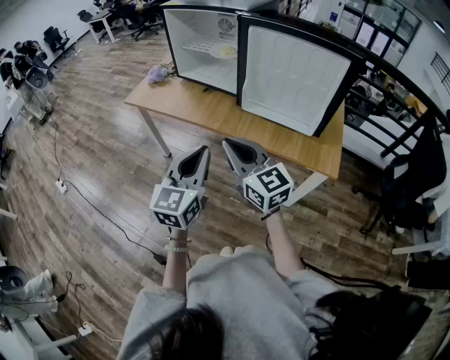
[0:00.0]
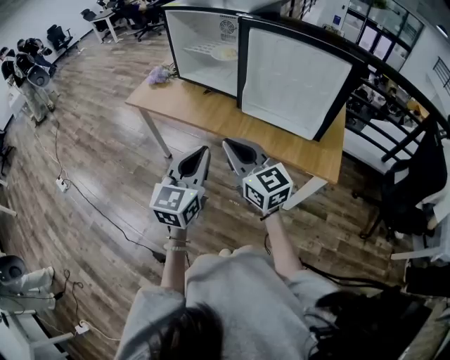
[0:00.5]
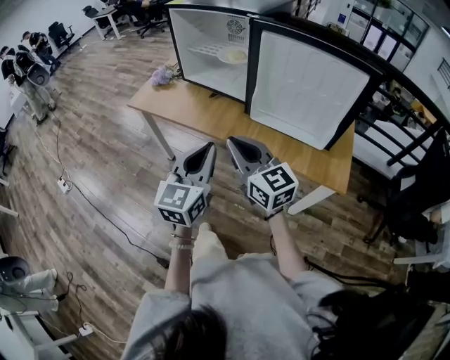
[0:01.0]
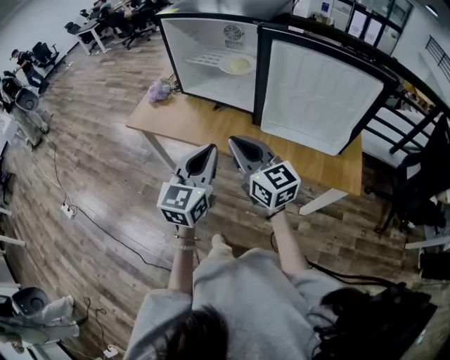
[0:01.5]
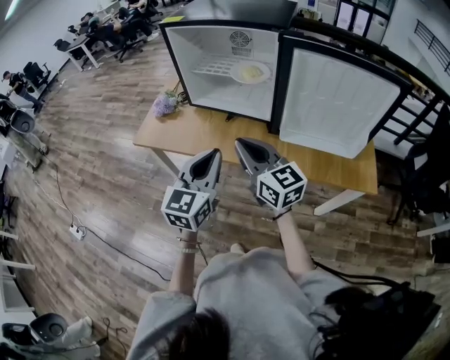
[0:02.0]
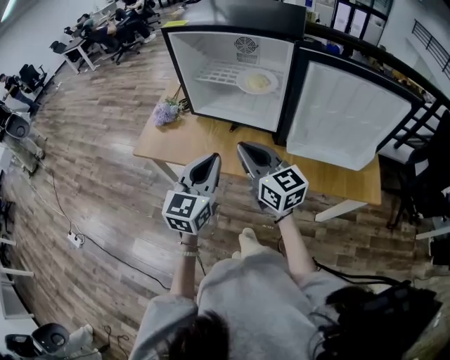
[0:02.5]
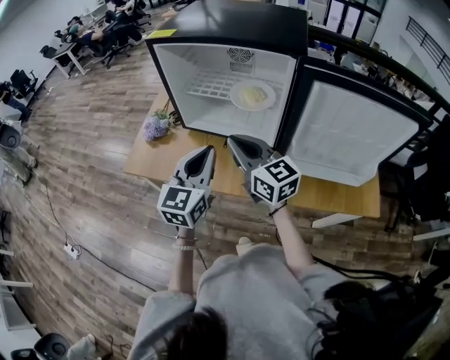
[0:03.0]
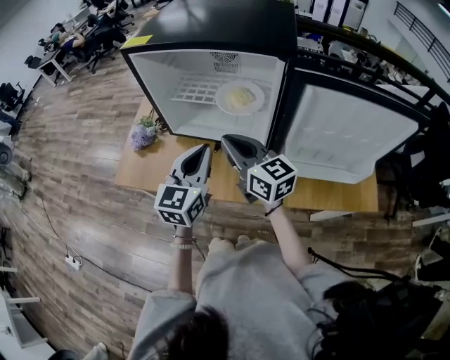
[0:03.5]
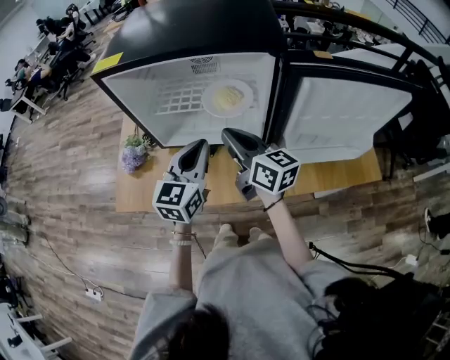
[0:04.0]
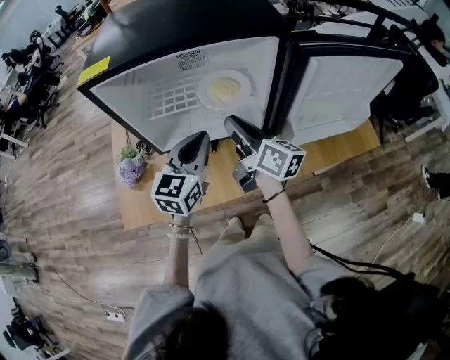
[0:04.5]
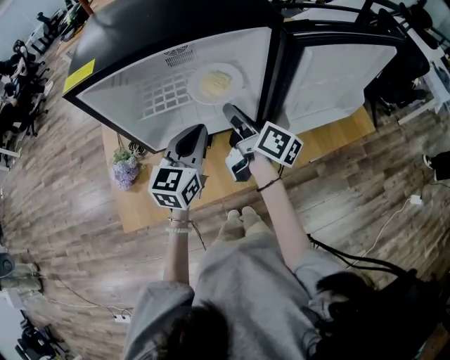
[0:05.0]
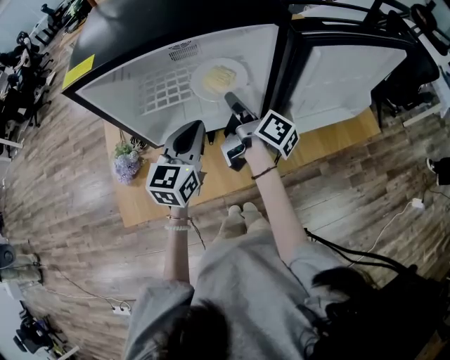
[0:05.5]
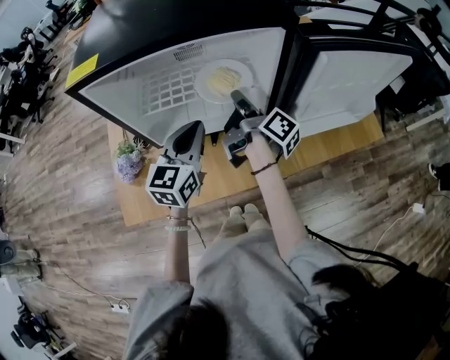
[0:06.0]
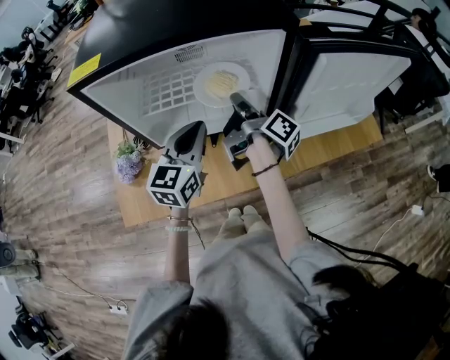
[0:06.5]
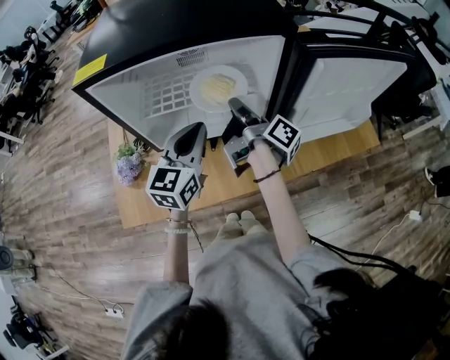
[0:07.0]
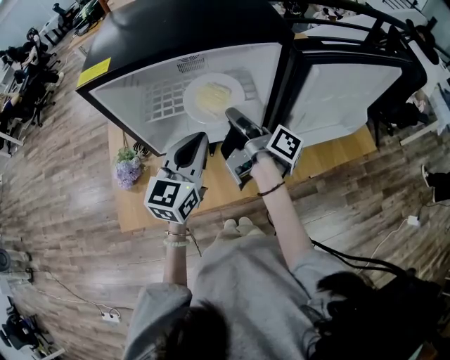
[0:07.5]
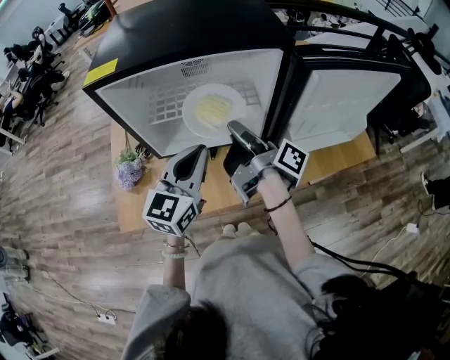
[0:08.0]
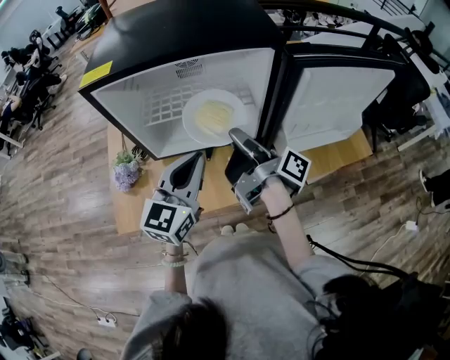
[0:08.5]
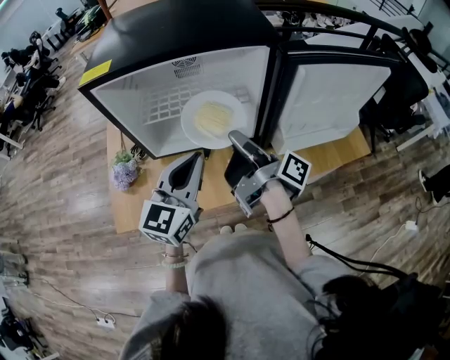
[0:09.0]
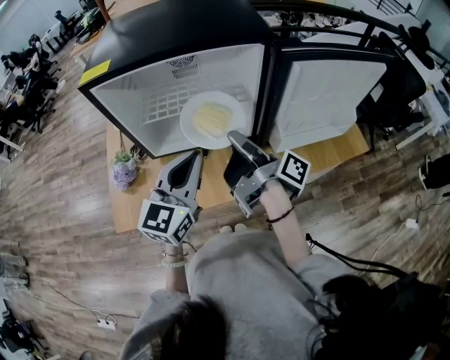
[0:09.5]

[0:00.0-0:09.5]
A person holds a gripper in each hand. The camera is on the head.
0.0 to 2.0 s: Both grippers travel together forward and to the left, roughly 20 cm.
2.0 to 4.0 s: Both grippers move forward, roughly 25 cm. The right gripper swivels roughly 30 degrees.
4.0 to 5.5 s: The right gripper travels forward by some 5 cm, rotates around the line of its fingers by some 50 degrees, clockwise from behind, and opens its fingers.
5.5 to 7.5 s: The right gripper changes place by some 5 cm; the left gripper changes place by some 5 cm.
7.5 to 9.5 s: Both grippers move backward, roughly 5 cm.

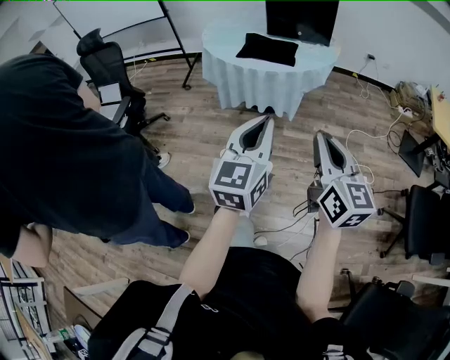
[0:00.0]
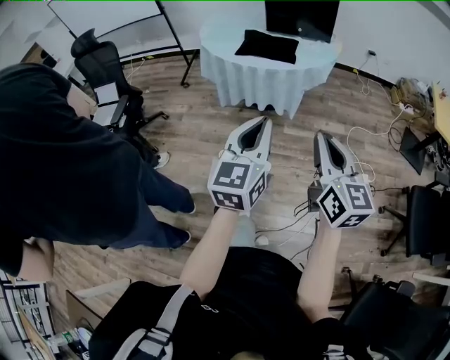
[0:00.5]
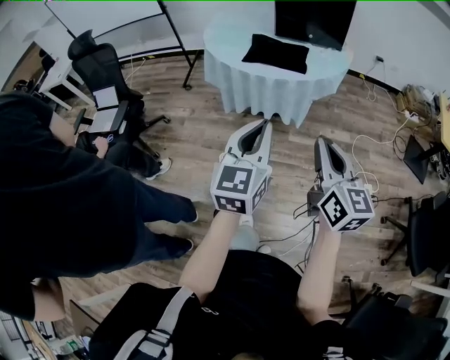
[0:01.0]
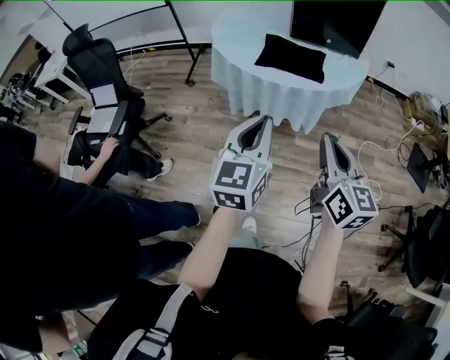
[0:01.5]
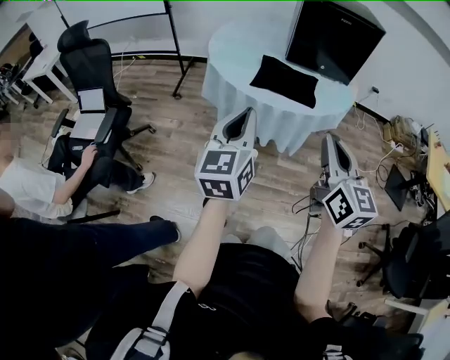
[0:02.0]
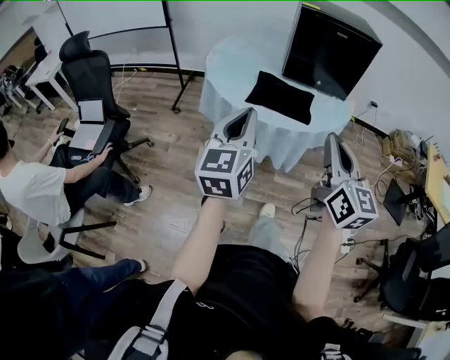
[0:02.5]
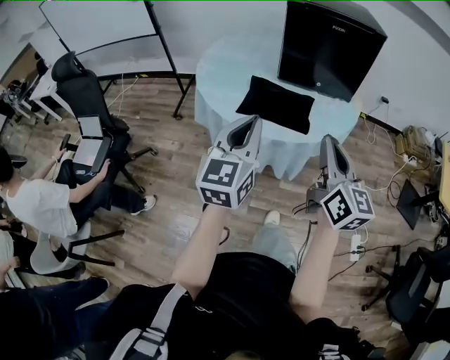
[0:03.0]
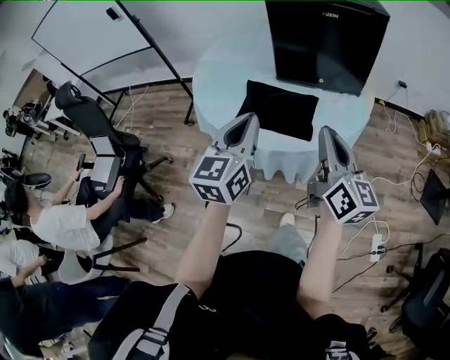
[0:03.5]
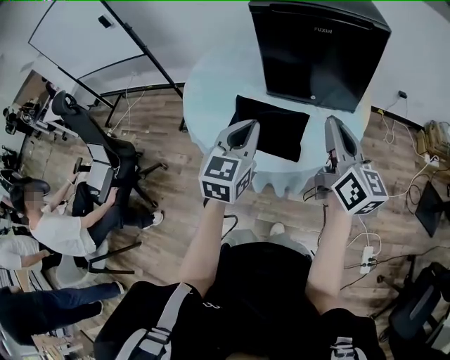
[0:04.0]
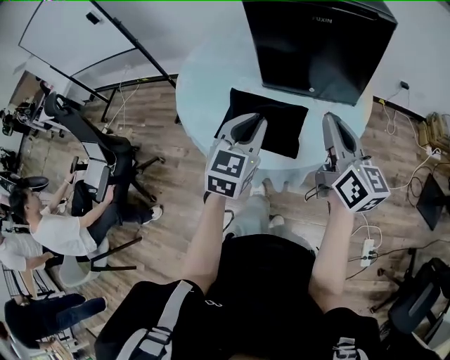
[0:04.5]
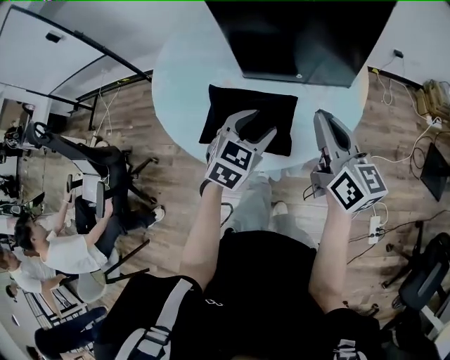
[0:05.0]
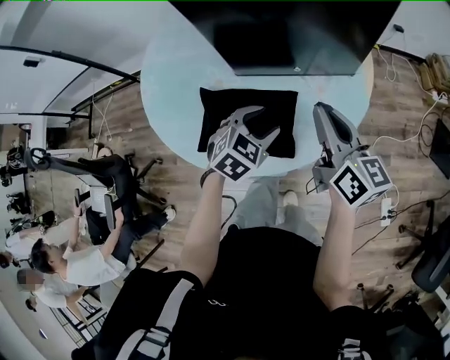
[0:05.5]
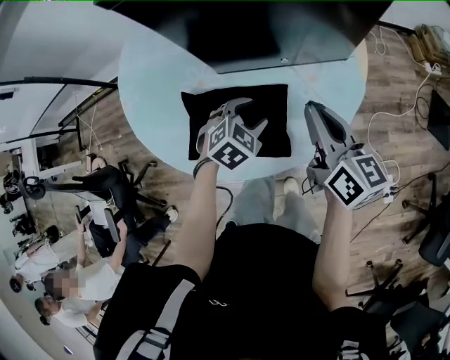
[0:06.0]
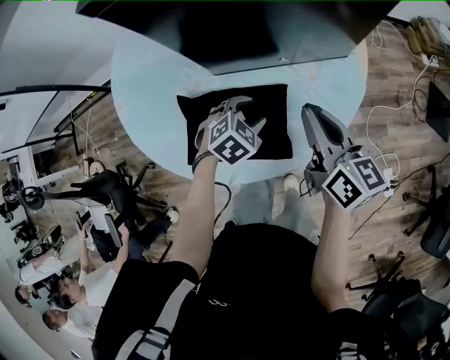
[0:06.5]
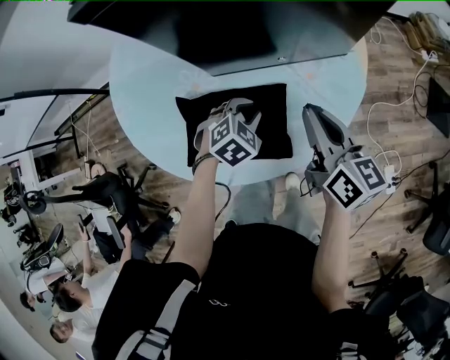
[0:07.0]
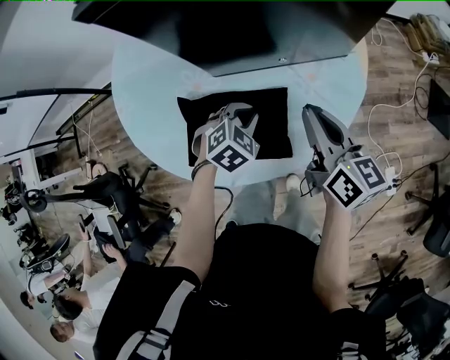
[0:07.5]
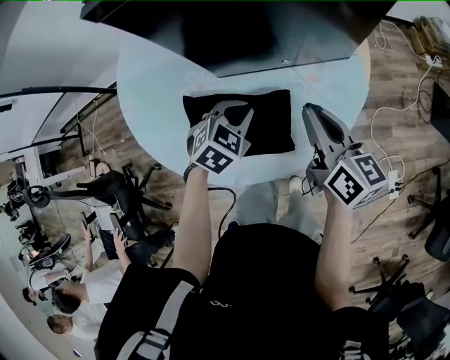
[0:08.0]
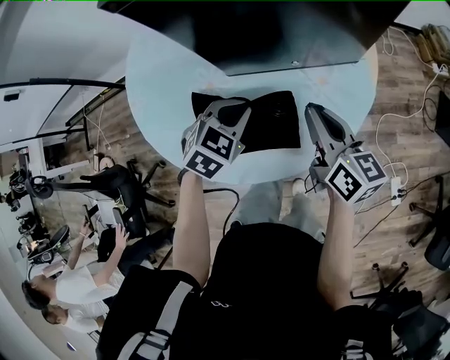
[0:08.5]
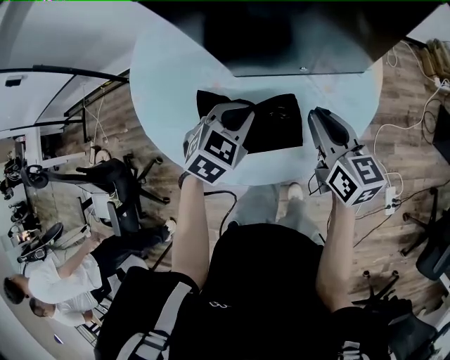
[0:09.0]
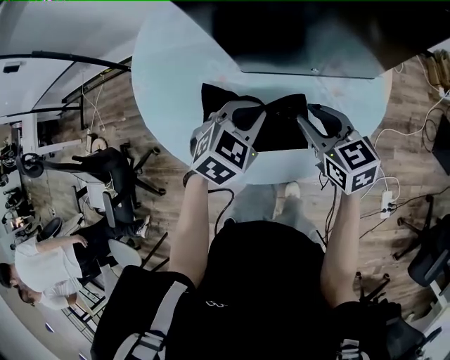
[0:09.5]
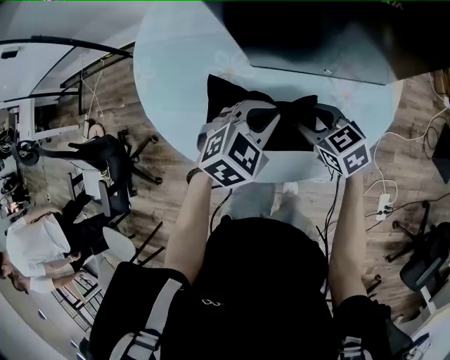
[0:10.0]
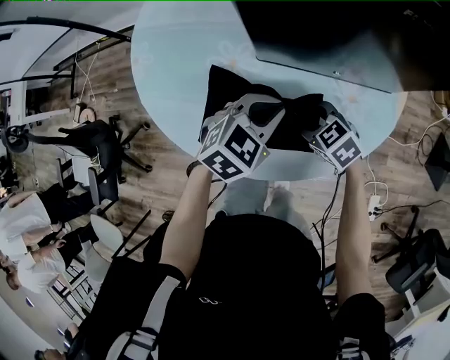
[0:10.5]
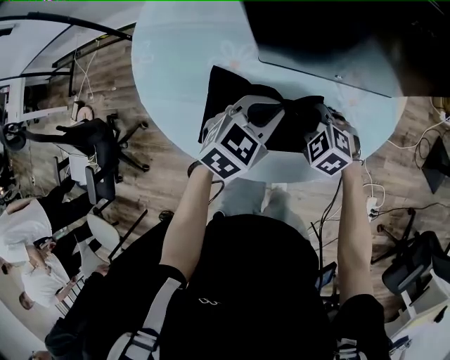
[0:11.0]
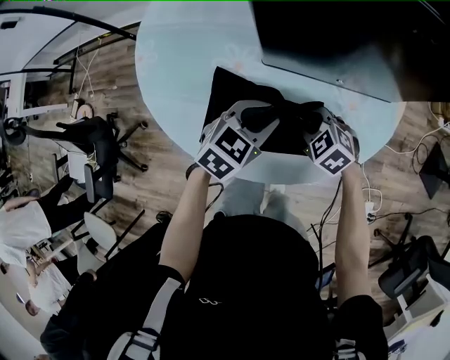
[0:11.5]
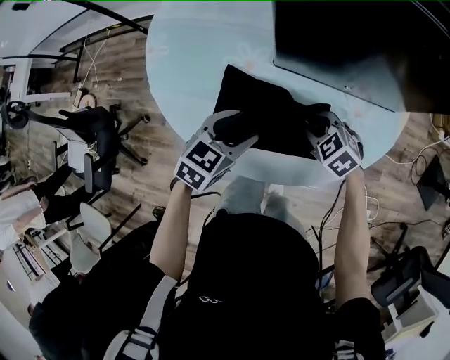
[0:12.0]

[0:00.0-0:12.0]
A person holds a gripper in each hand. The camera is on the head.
0.0 to 2.0 s: Both grippers travel together forward and to the left, approximately 30 cm.
2.0 to 4.0 s: Both grippers travel together forward and to the right, roughly 40 cm. The left gripper changes its angle by about 20 degrees.
4.0 to 6.0 s: Both grippers move downward and forward, about 25 cm. The left gripper angles its fingers downward, by some 40 degrees, and opens up.
6.0 to 8.0 s: The left gripper closes.
8.0 to 10.0 s: The right gripper moves downward and to the left, some 15 cm, swivels some 50 degrees, and opens its fingers.
10.0 to 12.0 s: The left gripper shifts about 10 cm to the left, swivels approximately 30 degrees, and opens its fingers, while the right gripper rotates approximately 30 degrees.

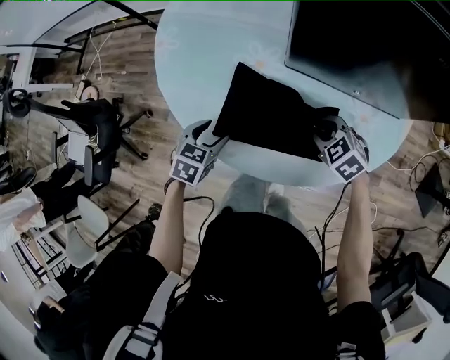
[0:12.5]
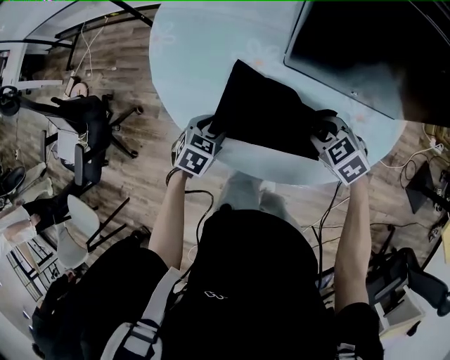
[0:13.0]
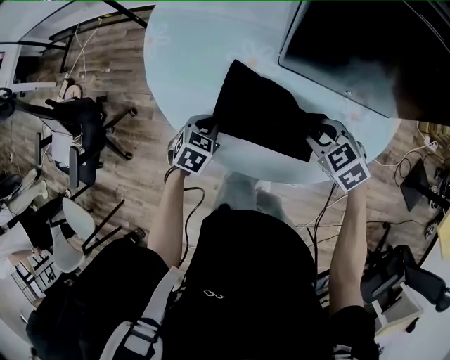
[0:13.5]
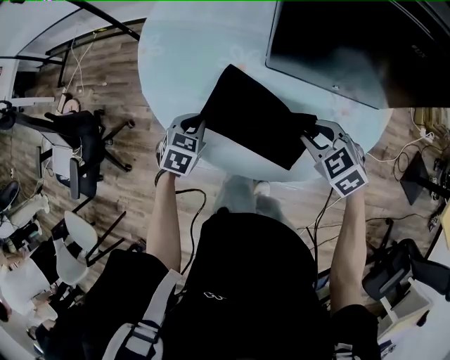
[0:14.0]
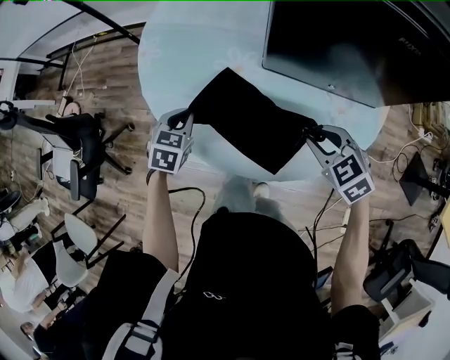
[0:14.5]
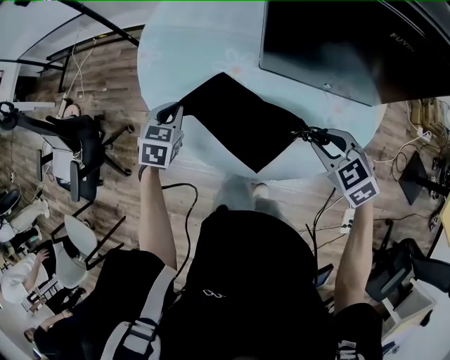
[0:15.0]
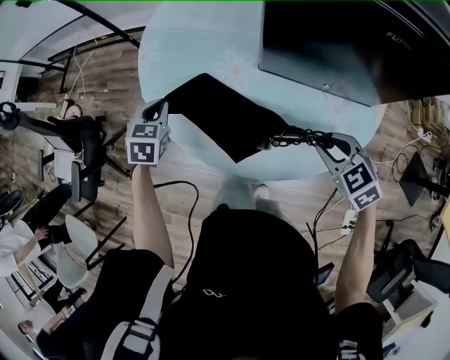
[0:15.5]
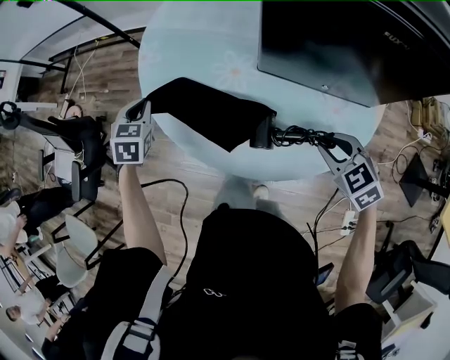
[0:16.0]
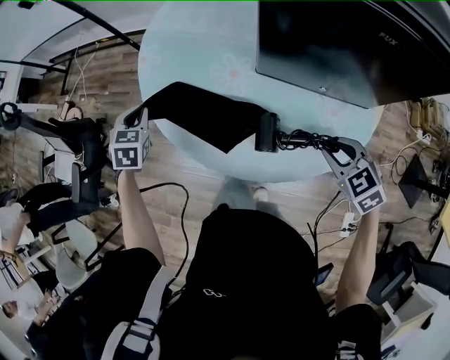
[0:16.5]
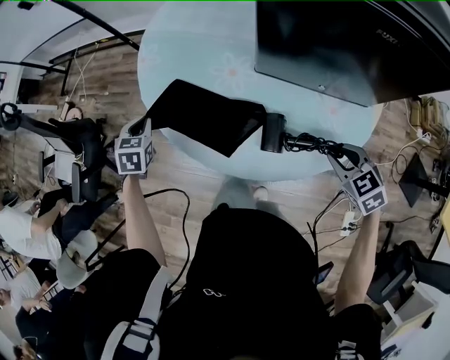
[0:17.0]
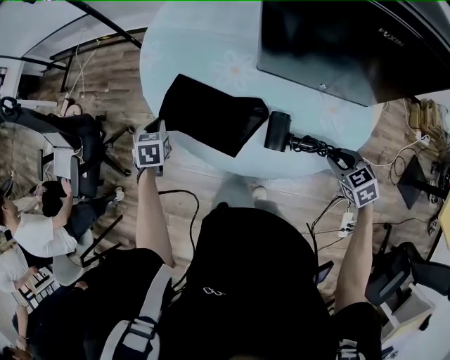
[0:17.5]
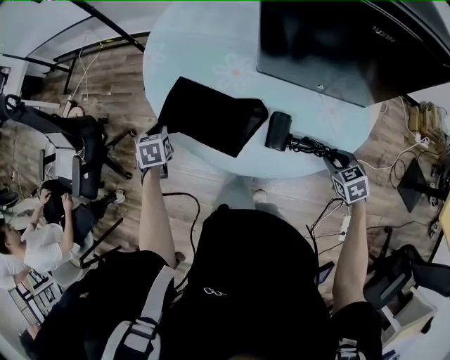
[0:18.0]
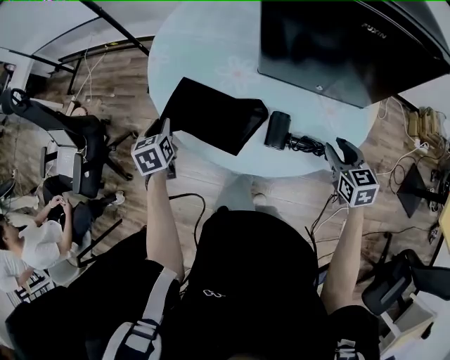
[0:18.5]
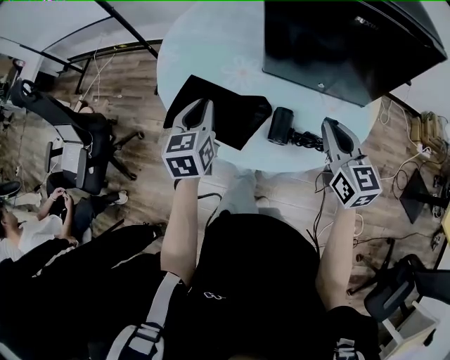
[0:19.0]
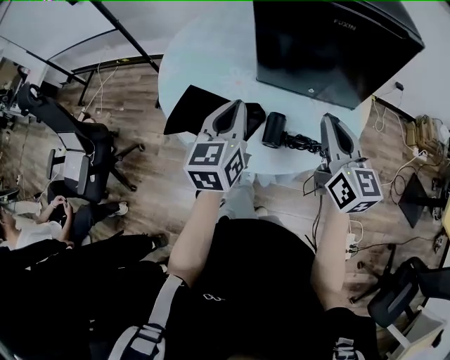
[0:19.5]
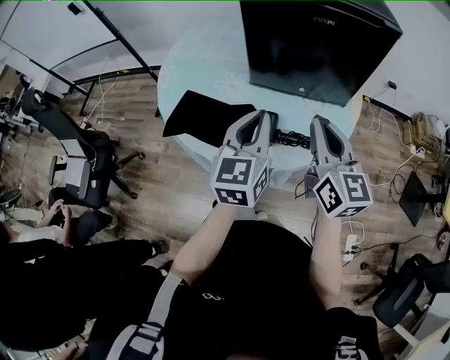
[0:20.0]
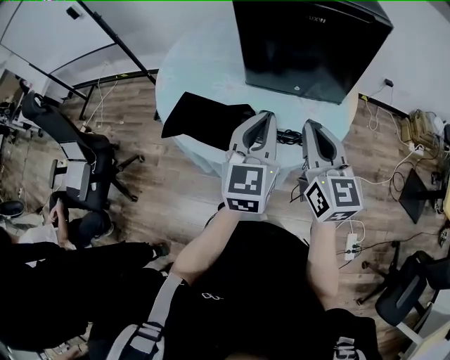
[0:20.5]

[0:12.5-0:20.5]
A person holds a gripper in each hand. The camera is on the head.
12.5 to 14.5 s: The right gripper travels upward by approximately 10 cm; the left gripper shifts approximately 5 cm forward, and closes.
14.5 to 16.5 s: The left gripper heads to the left, upward and forward, covering roughly 15 cm. The right gripper changes place by roughly 5 cm.
16.5 to 18.5 s: The left gripper is displaced backward by roughly 5 cm, reaches some 10 cm downward, then returns, swivels approximately 30 degrees, and opens. The right gripper goes downward and returns, about 10 cm each way, and rotates roughly 30 degrees.
18.5 to 20.5 s: The right gripper shifts approximately 20 cm upward, tilts its fingers approximately 40 degrees upward, and closes its fingers. Meanwhile the left gripper is displaced to the right and upward by roughly 40 cm, tips its fingers upward by about 40 degrees, and closes its fingers.
